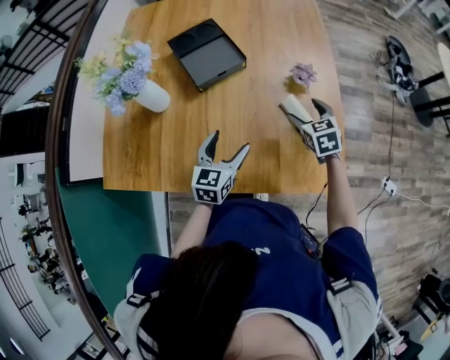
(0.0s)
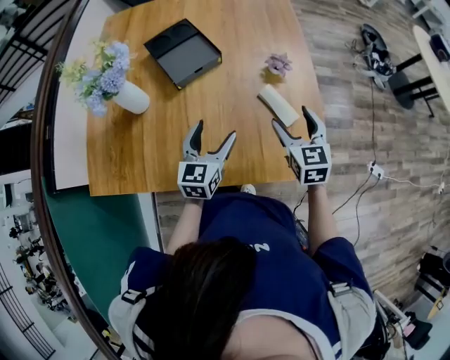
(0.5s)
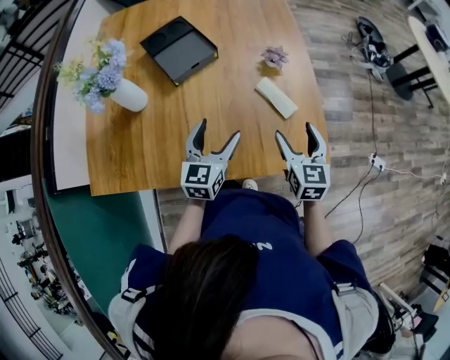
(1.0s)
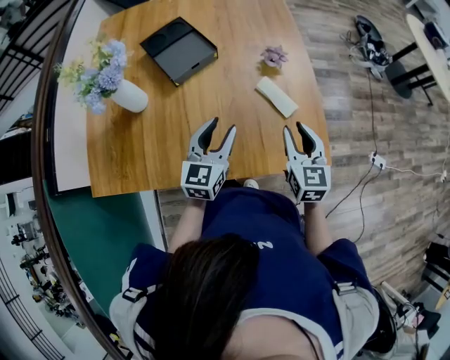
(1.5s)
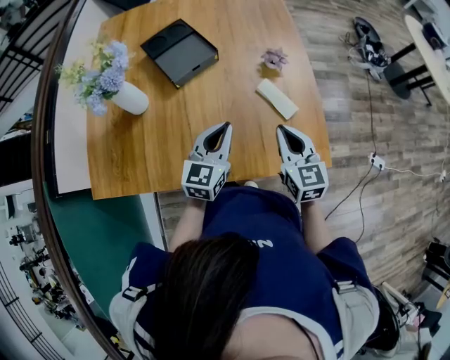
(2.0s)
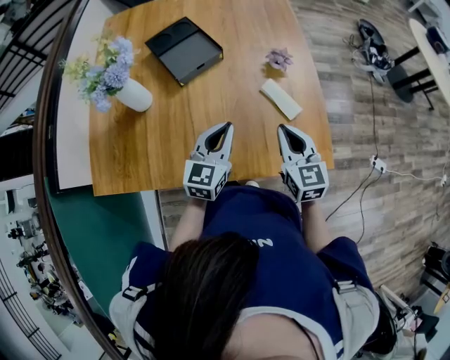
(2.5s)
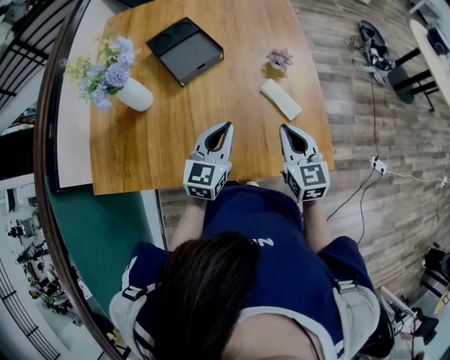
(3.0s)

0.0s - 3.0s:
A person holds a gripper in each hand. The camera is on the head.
0.0s - 1.5s: The right gripper heads backward and upward, covering about 15 cm, turns by some 30 degrees, and closes up; the left gripper heads upward, covering some 5 cm, and closes up.
1.5s - 3.0s: The left gripper closes up.

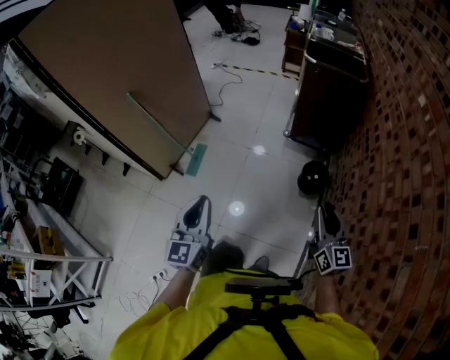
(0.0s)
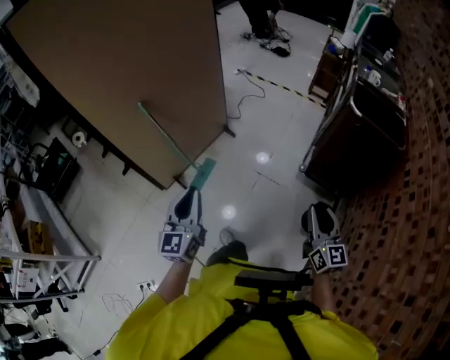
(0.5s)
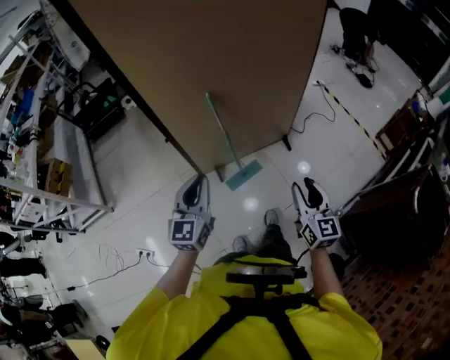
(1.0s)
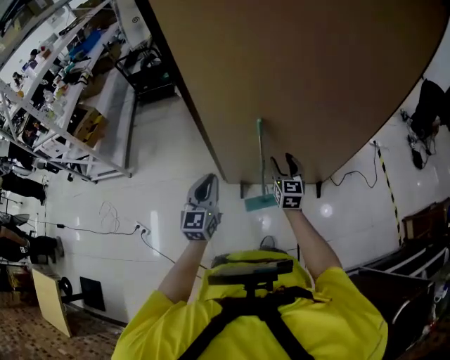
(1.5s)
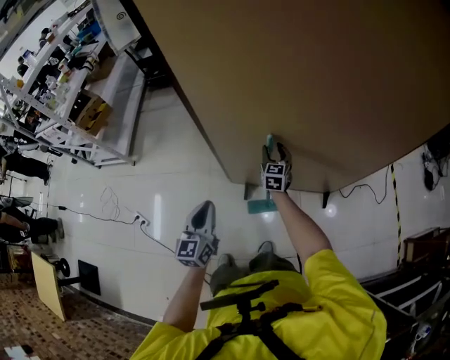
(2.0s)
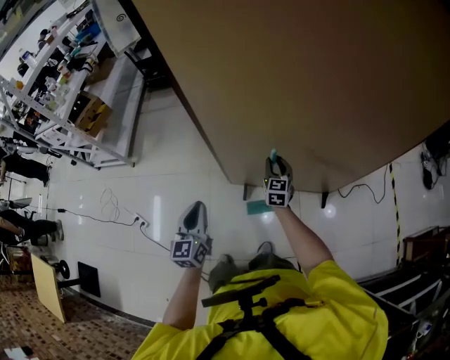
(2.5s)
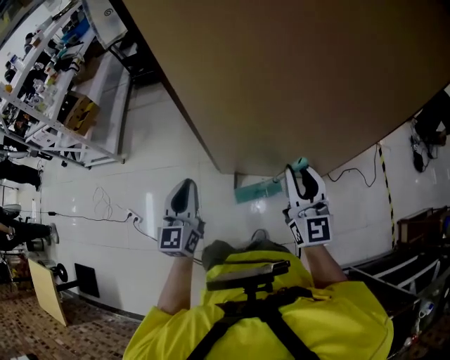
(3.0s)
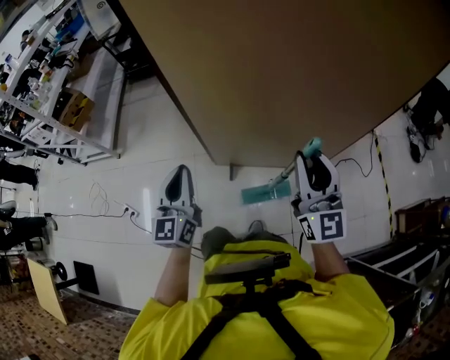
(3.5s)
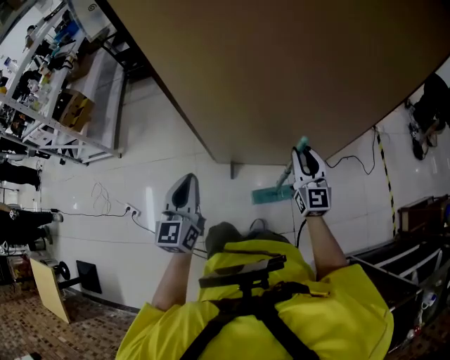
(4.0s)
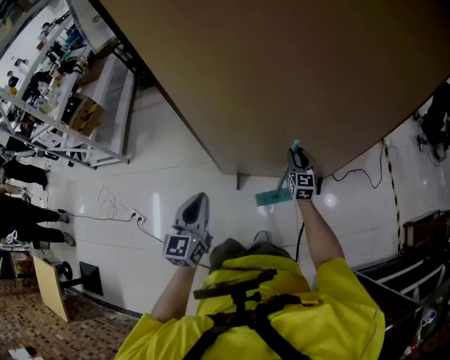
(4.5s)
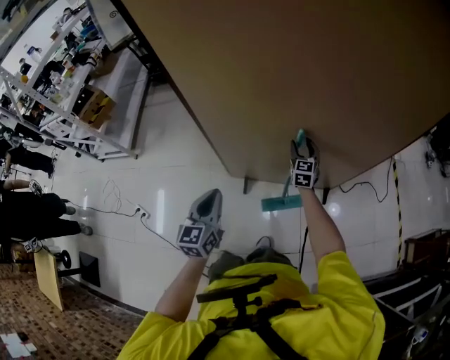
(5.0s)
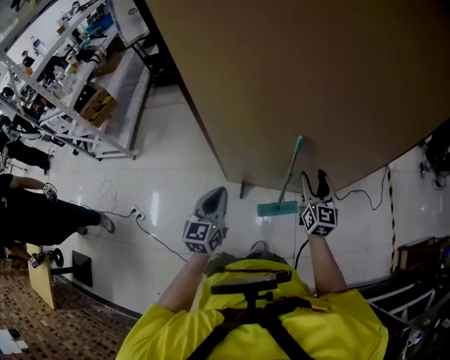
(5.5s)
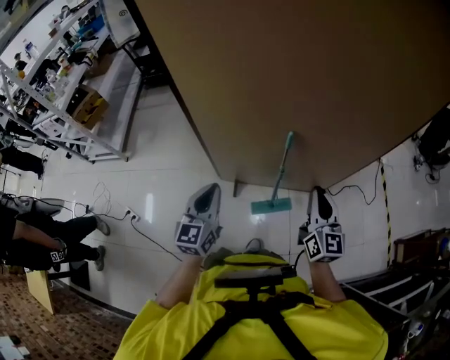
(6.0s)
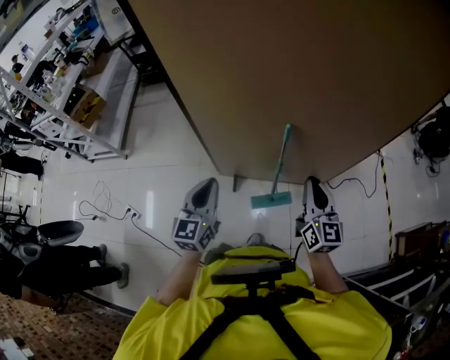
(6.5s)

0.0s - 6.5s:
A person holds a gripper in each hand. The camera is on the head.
0.0s - 2.0s: The two grippers travel together, roughly 90 cm. The left gripper rotates approximately 70 degrees, while the right gripper swivels approximately 60 degrees, and opens its fingers.
2.0s - 4.5s: The left gripper moves to the right and upward, some 10 cm. The right gripper travels to the right and backward by some 20 cm, travels upward and back again, approximately 30 cm each way, and closes up.
4.5s - 6.5s: The right gripper goes about 25 cm upward and backward, and closes up.

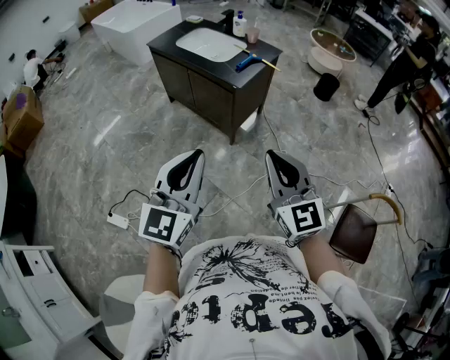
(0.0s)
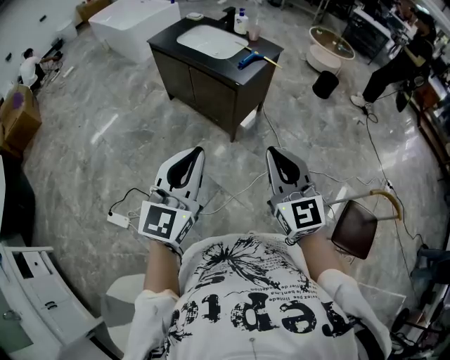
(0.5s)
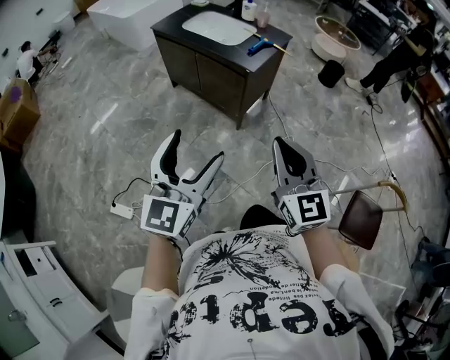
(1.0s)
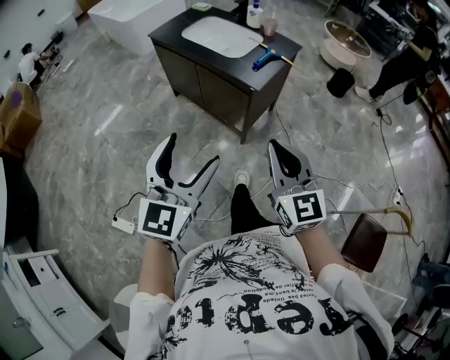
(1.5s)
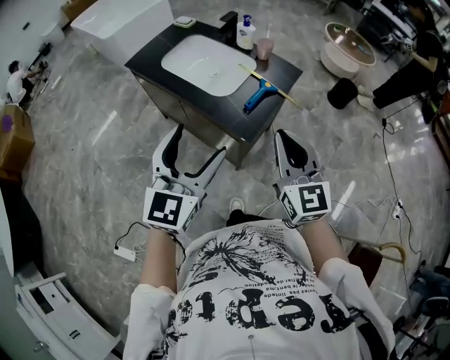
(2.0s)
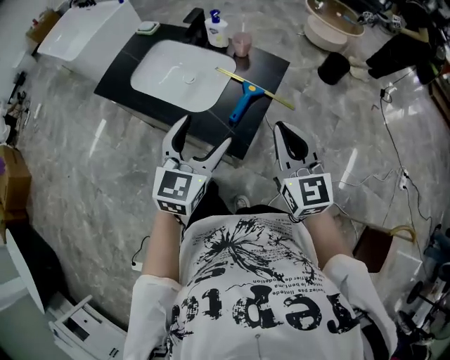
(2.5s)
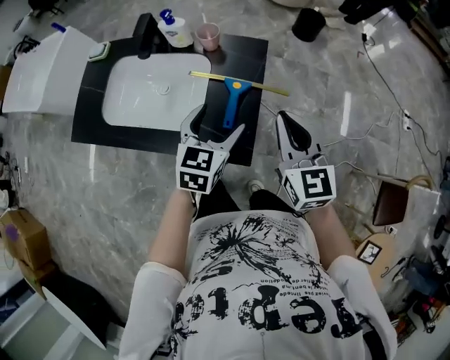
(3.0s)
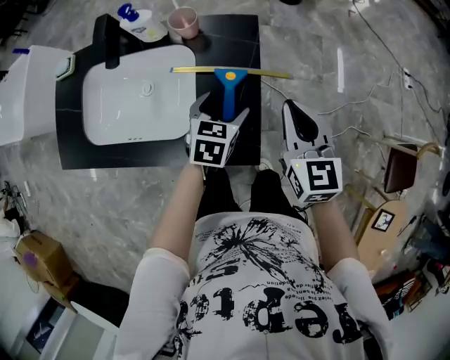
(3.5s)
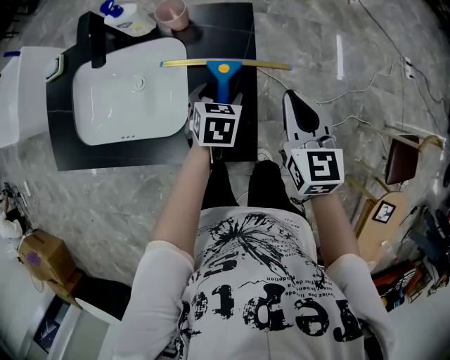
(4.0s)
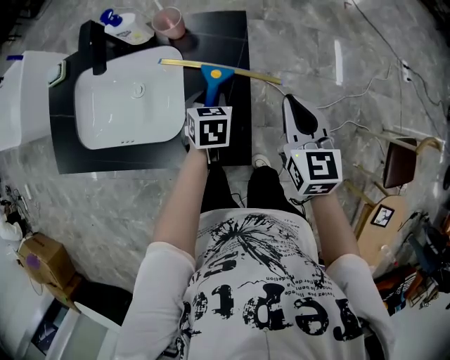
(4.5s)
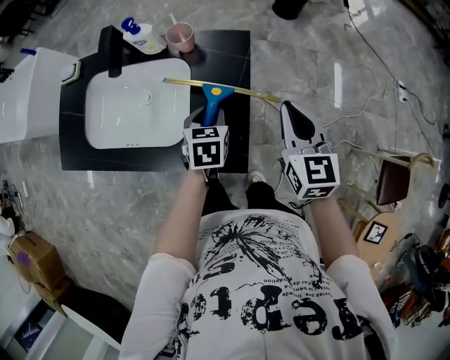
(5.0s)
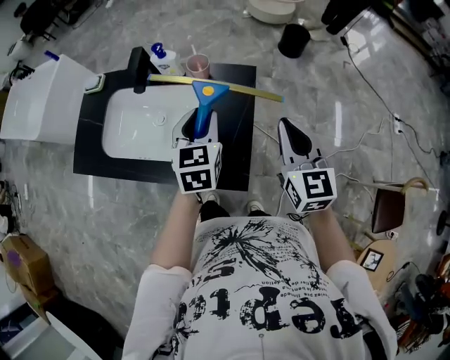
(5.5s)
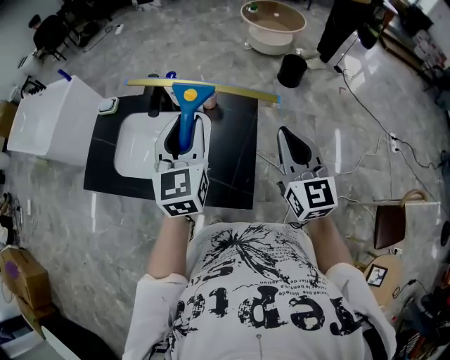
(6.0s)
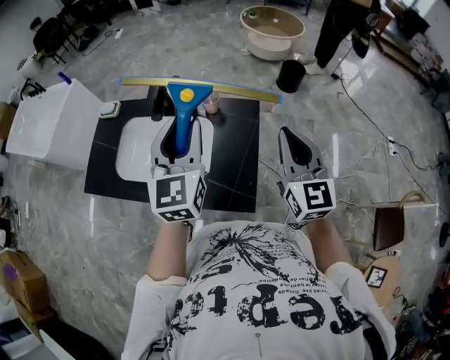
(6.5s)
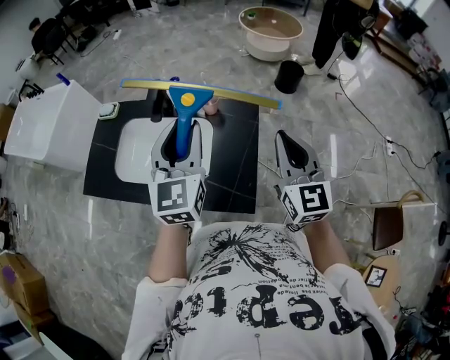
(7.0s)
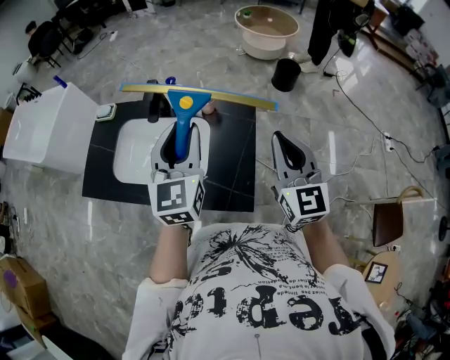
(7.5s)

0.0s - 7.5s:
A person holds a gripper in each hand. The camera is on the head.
0.0s - 2.0s: Both grippers are carried forward, approximately 50 cm. The left gripper opens its fingers.
2.0s - 4.0s: The right gripper moves roughly 35 cm, and changes its angle by about 50 degrees; the left gripper moves approximately 60 cm, and angles its fingers downward, by some 50 degrees.
4.0s - 5.5s: The left gripper goes approximately 25 cm upward, rotates about 30 degrees, and closes up; the right gripper travels upward by roughly 15 cm.
5.5s - 7.5s: The right gripper moves upward, approximately 10 cm. Meanwhile the left gripper goes approximately 15 cm upward and to the left, and turns by approximately 20 degrees.

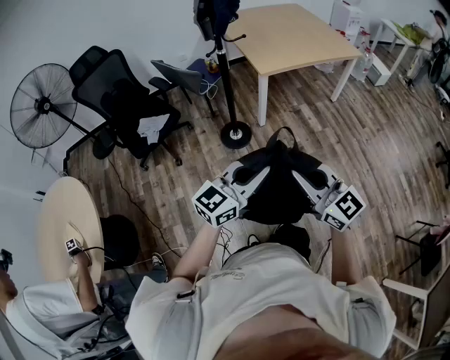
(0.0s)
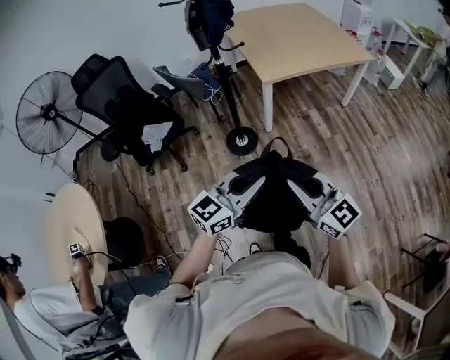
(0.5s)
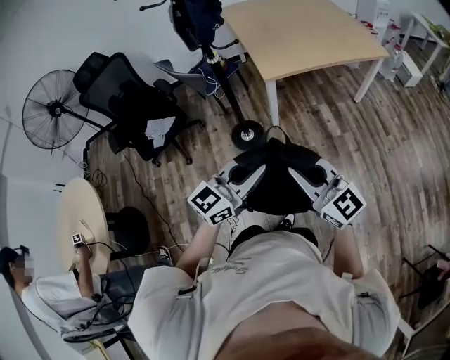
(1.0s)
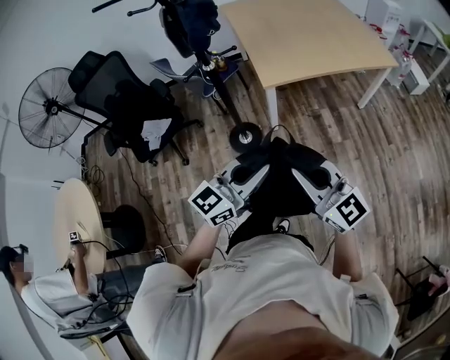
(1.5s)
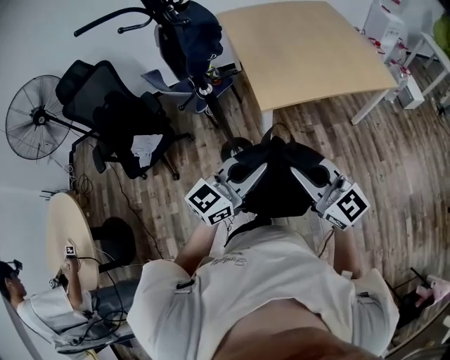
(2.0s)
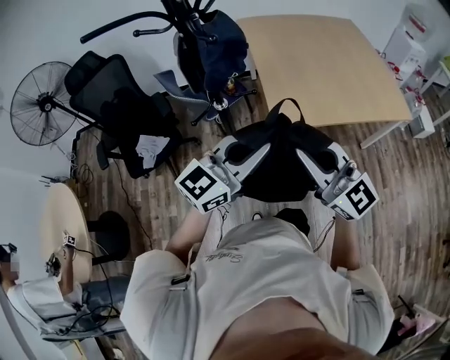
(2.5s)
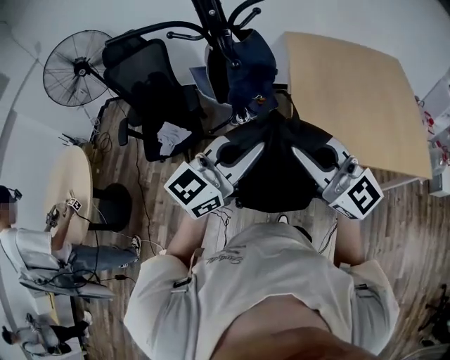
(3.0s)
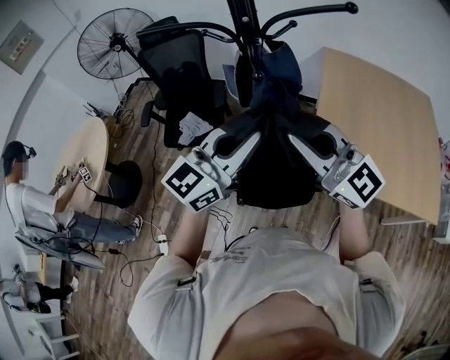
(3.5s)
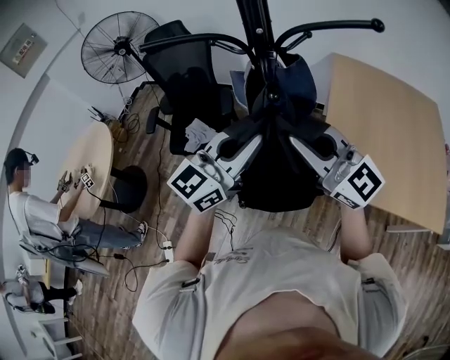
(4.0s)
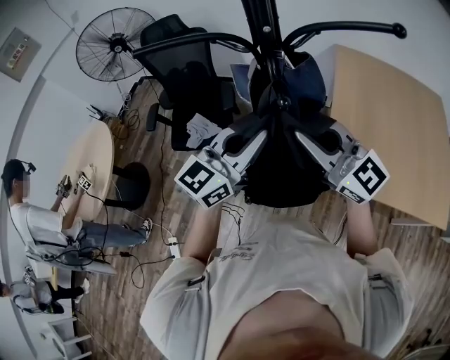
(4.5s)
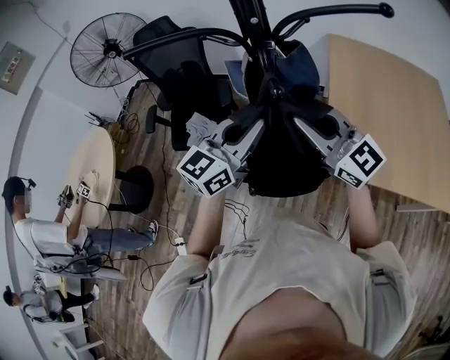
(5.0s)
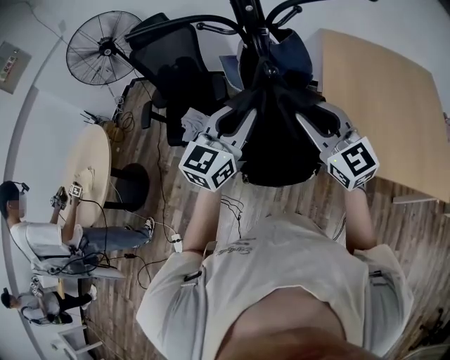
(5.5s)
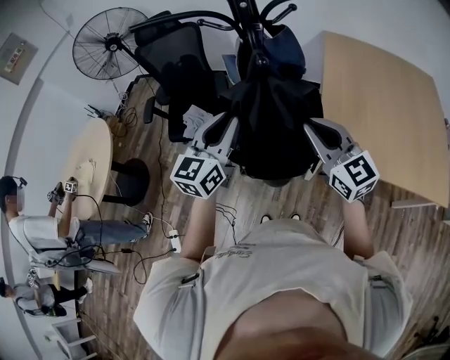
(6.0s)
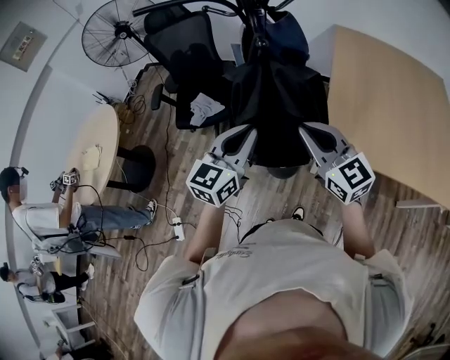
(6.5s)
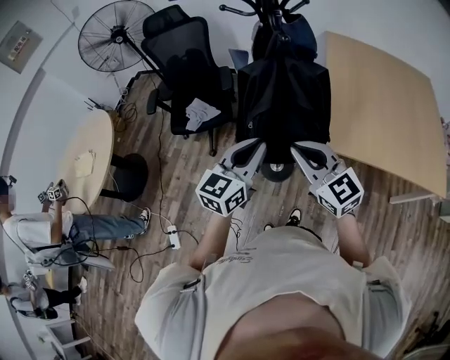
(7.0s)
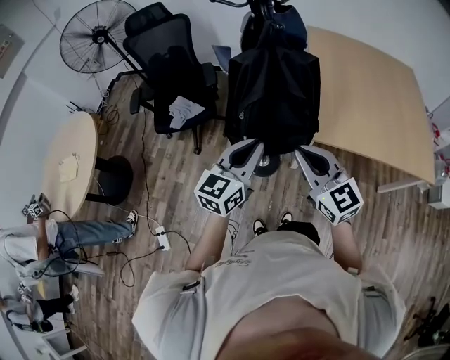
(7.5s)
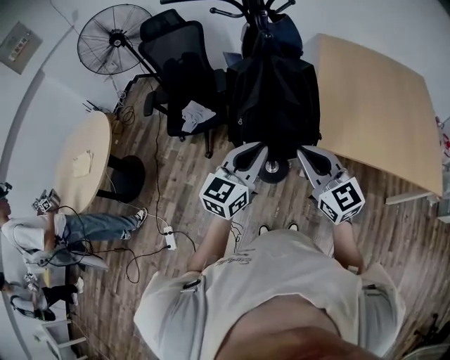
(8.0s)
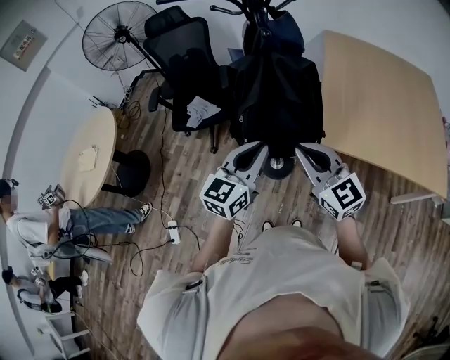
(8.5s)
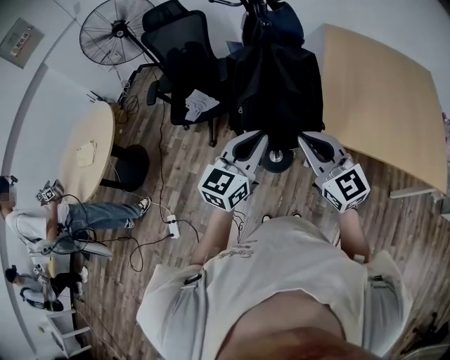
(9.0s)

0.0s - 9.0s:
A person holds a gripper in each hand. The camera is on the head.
0.0s - 2.0s: Both grippers travel together forward, roughly 35 cm.
2.0s - 4.5s: The right gripper shifts by about 35 cm, and rotates some 40 degrees. The left gripper shifts by about 30 cm, and changes its angle by roughly 40 degrees.
4.5s - 7.0s: Both grippers move backward and downward, roughly 20 cm. The right gripper swivels roughly 20 degrees.
7.0s - 9.0s: The right gripper moves some 5 cm.
